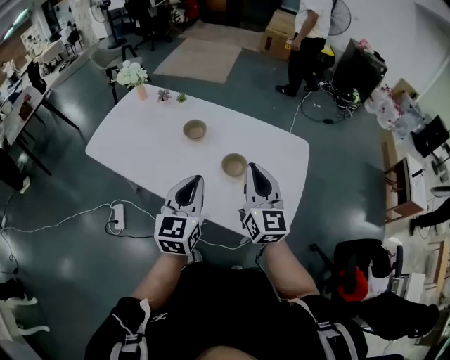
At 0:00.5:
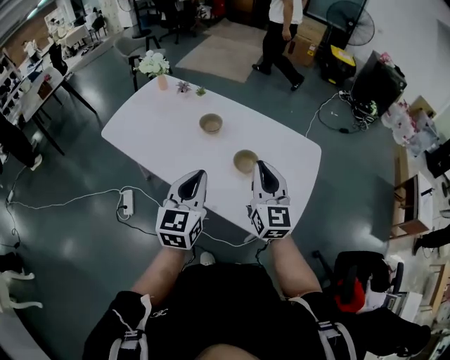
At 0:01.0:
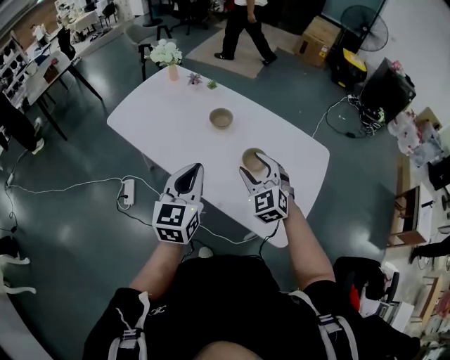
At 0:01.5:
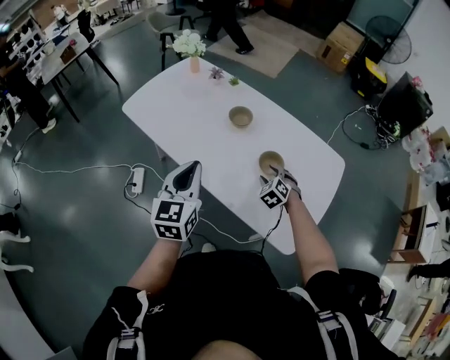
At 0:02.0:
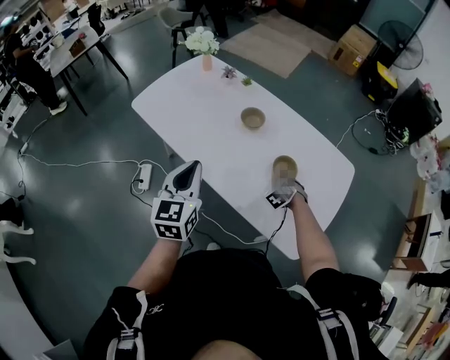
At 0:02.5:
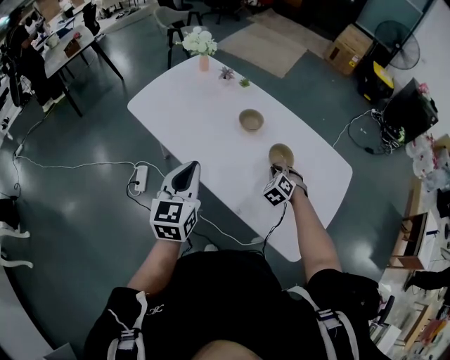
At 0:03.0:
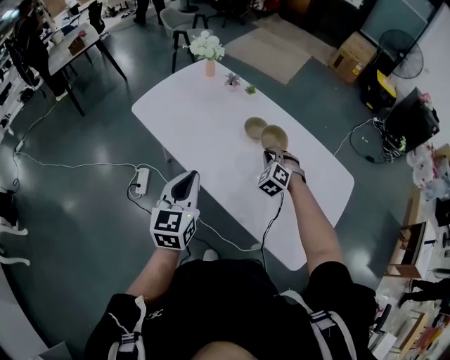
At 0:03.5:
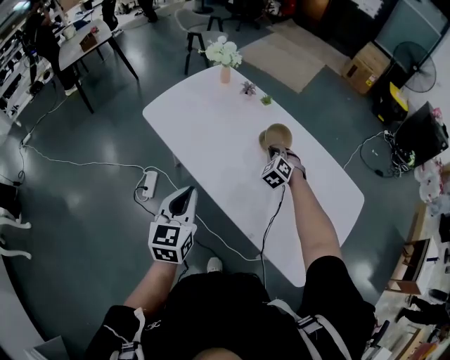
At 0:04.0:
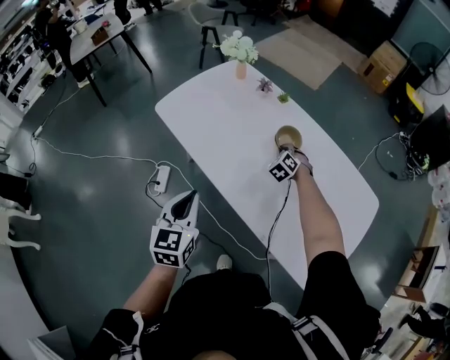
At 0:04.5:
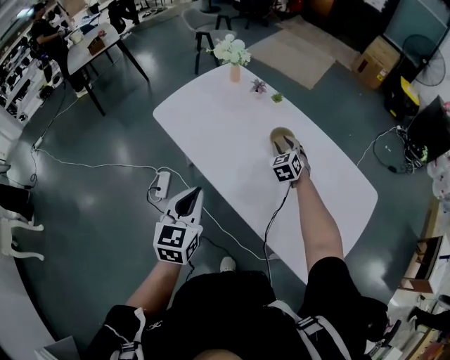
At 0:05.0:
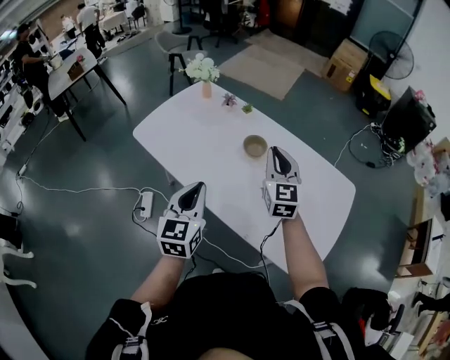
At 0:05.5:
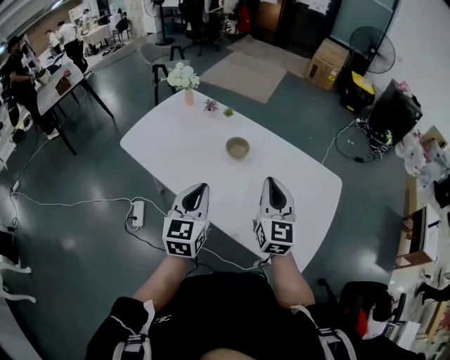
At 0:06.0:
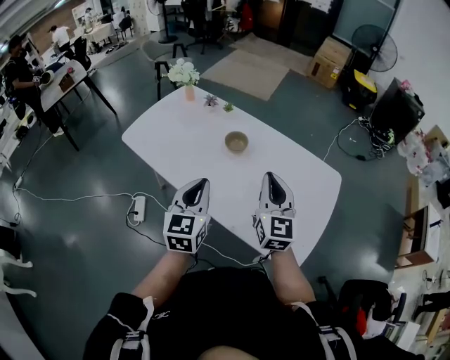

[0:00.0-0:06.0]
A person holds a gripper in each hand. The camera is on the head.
0:00.0 to 0:02.0: The left gripper moves to the left, about 15 cm; the right gripper moves downward, some 35 cm, angles its fingers downward, by approximately 60 degrees, and opens, then closes once more.
0:02.0 to 0:04.0: The right gripper moves forward and to the left, some 30 cm, while the left gripper goes approximately 15 cm to the left and downward.
0:04.0 to 0:06.0: The right gripper shifts approximately 40 cm backward, upward and to the right, tips its fingers upward by some 50 degrees, and opens, then closes once more; the left gripper goes roughly 20 cm to the right and upward.

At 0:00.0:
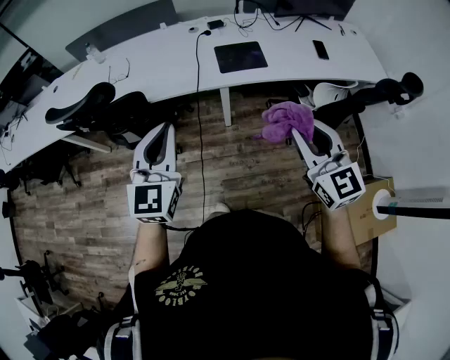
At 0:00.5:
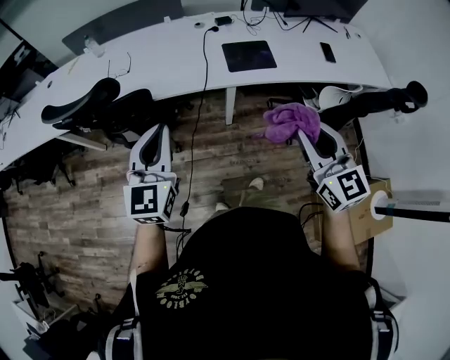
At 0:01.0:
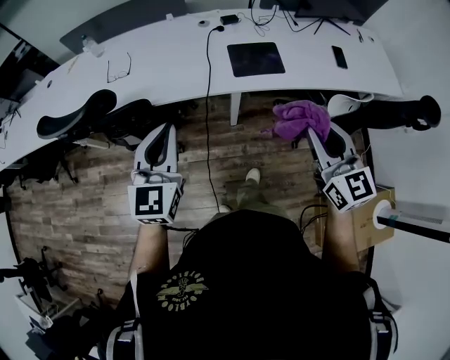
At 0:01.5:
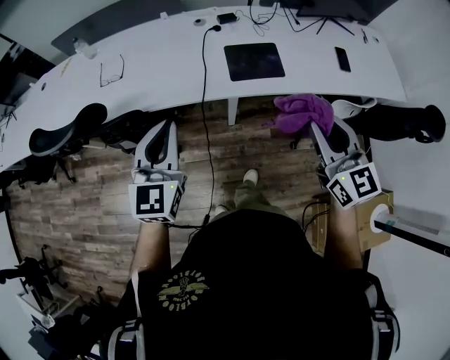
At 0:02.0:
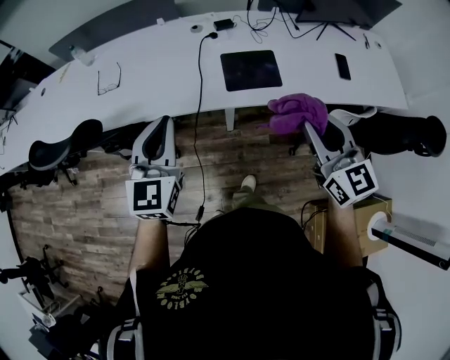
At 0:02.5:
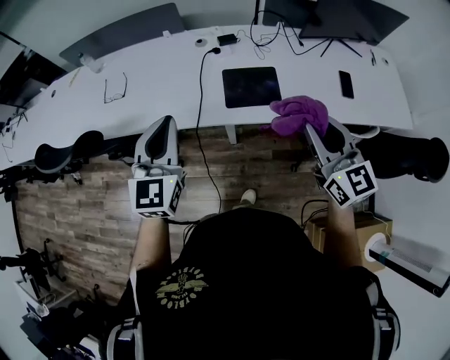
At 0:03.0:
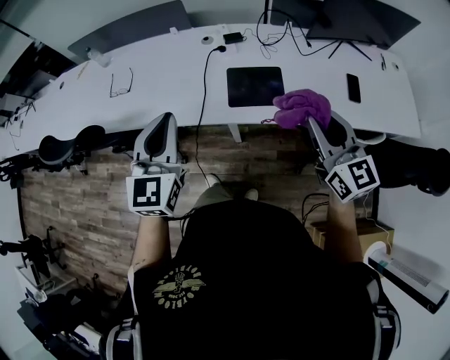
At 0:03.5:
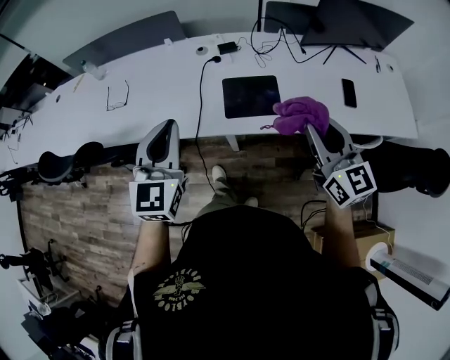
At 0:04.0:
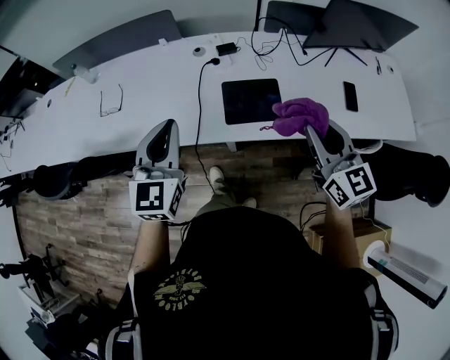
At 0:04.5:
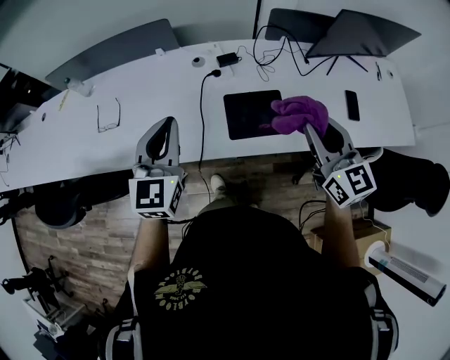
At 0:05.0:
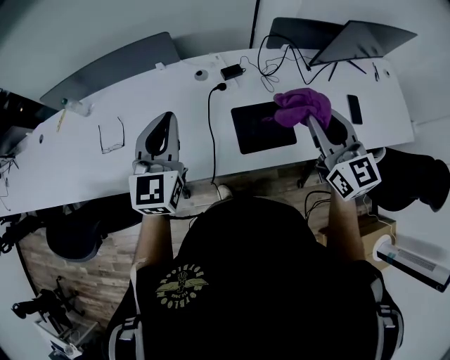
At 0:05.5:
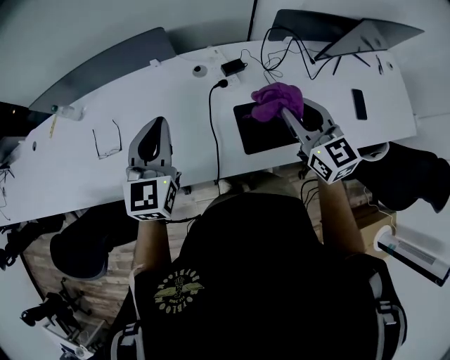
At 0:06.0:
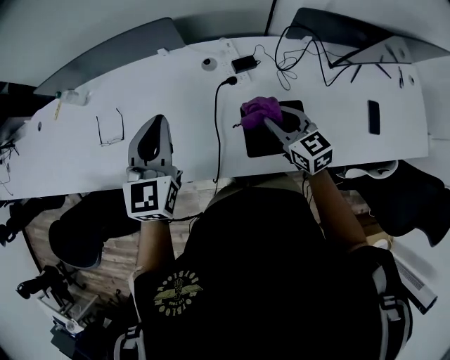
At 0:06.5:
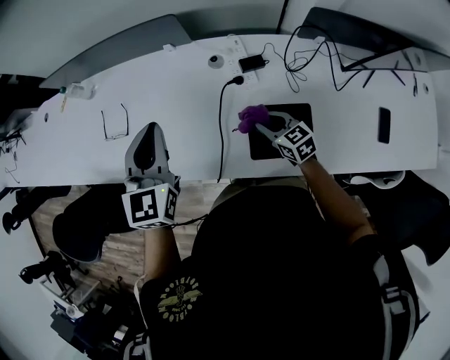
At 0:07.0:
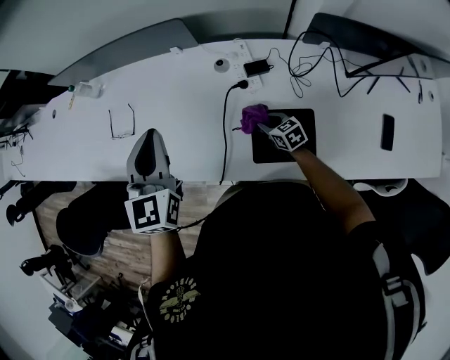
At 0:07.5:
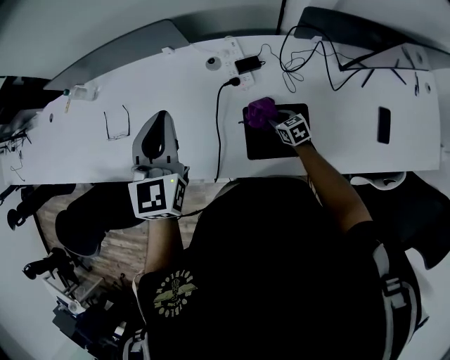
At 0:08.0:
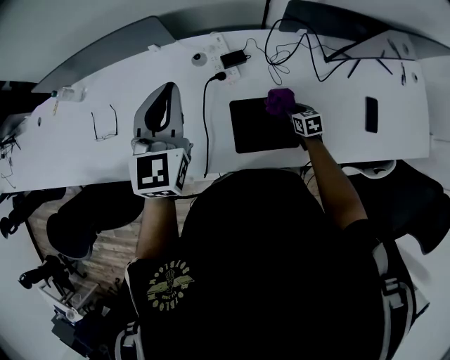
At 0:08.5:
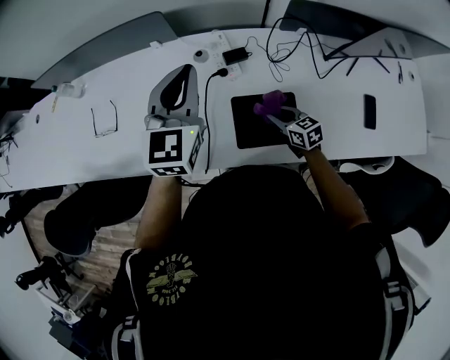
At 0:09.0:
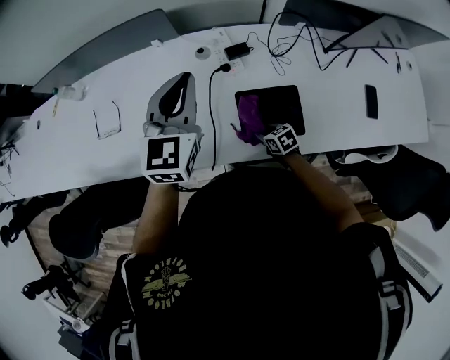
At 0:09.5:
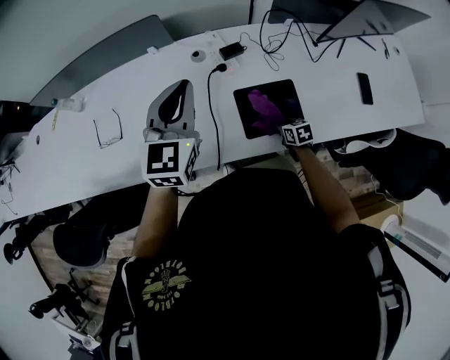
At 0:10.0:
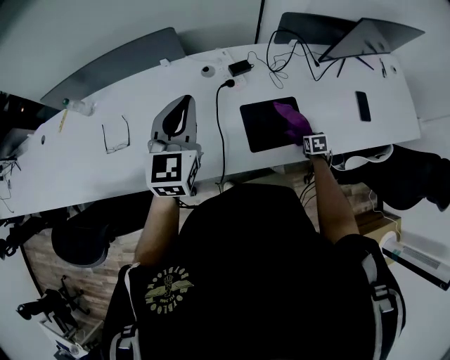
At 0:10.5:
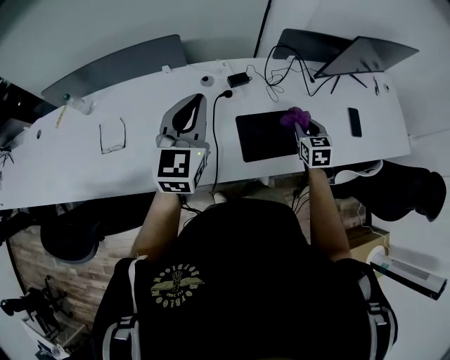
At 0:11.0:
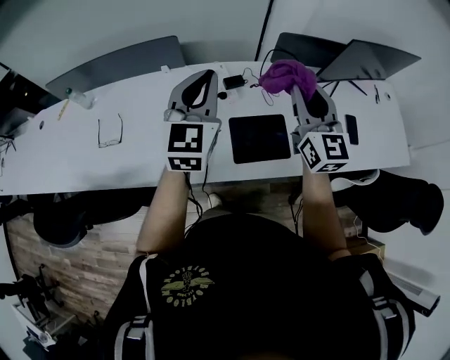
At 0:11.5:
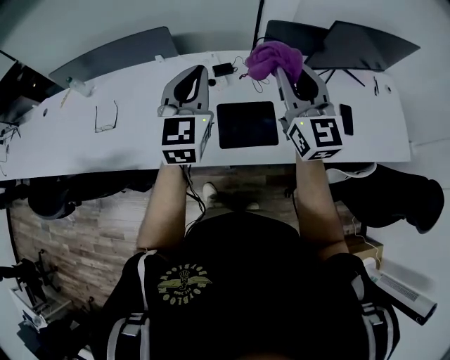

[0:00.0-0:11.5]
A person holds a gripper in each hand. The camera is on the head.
0:00.0 to 0:02.0: The grippers both shift forward by approximately 20 cm.
0:02.0 to 0:04.0: The grippers both shift forward and to the right by some 15 cm.
0:04.0 to 0:06.0: The right gripper is displaced forward, downward and to the left by about 35 cm, and rotates approximately 20 degrees. Meanwhile the left gripper moves forward, about 25 cm.
0:06.0 to 0:07.5: The right gripper goes some 25 cm downward, and changes its angle by about 30 degrees.
0:07.5 to 0:09.5: The left gripper moves approximately 10 cm to the right and comes back. The right gripper swings left and right, roughly 20 cm each way, with 2 reversals, and turns by roughly 20 degrees.
0:09.5 to 0:11.5: The left gripper shifts approximately 15 cm to the right and upward. The right gripper is displaced upward by approximately 50 cm, and tilts its fingers some 60 degrees upward.

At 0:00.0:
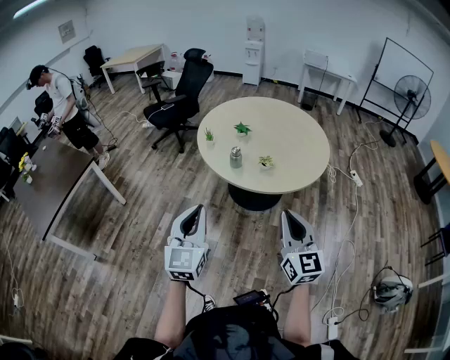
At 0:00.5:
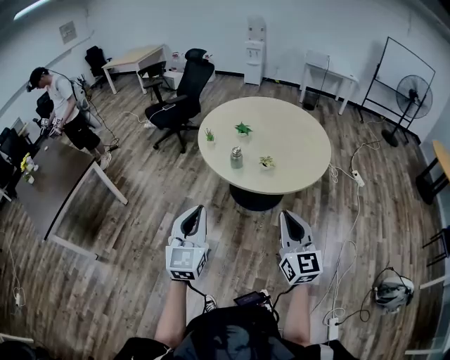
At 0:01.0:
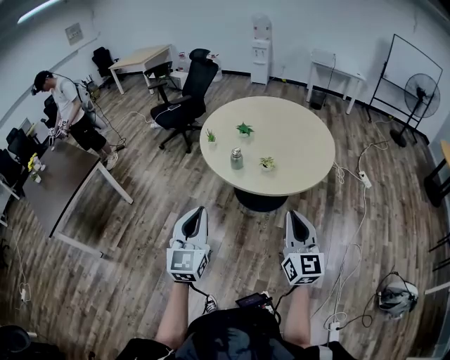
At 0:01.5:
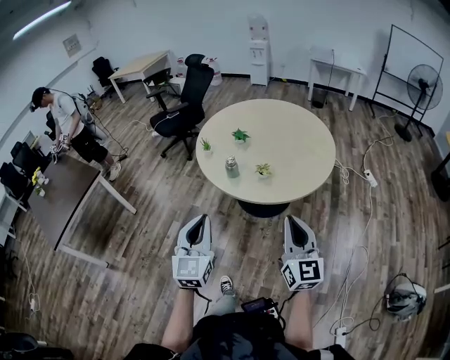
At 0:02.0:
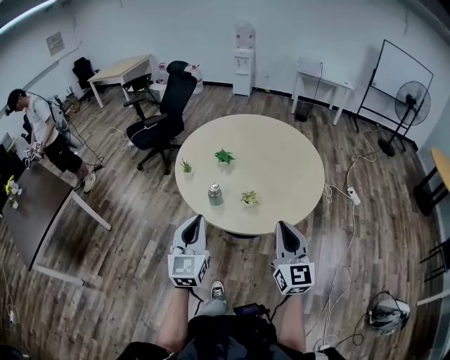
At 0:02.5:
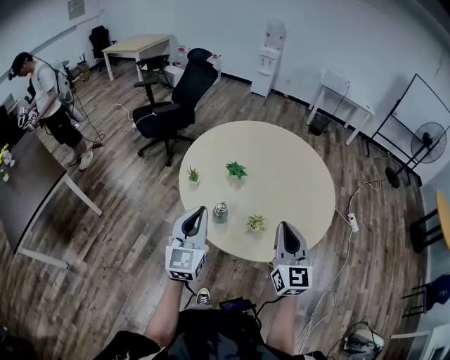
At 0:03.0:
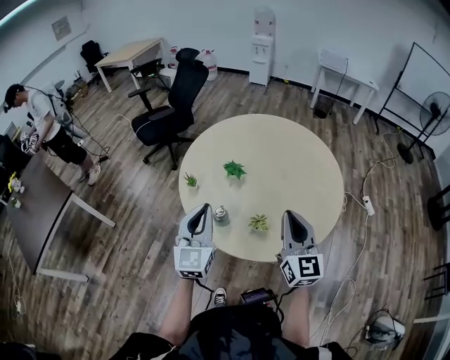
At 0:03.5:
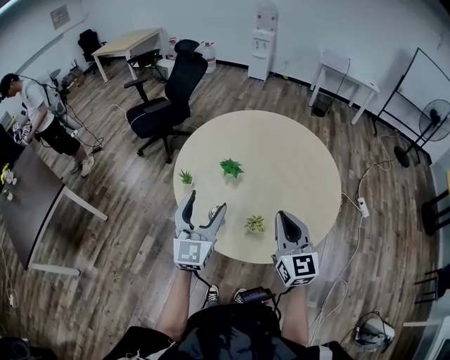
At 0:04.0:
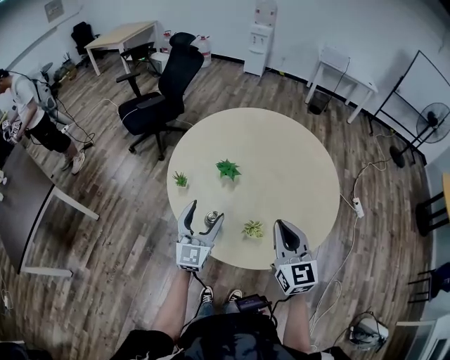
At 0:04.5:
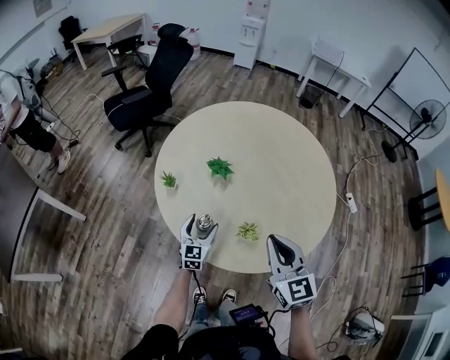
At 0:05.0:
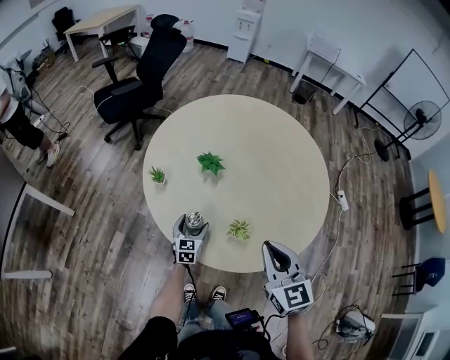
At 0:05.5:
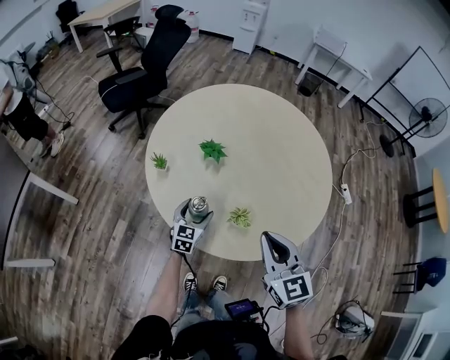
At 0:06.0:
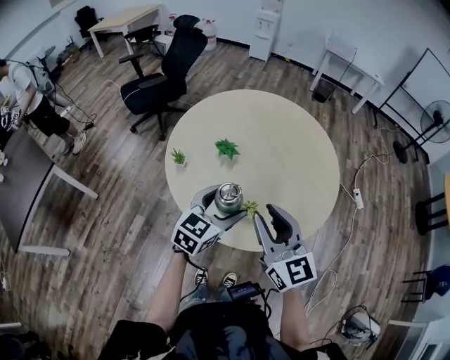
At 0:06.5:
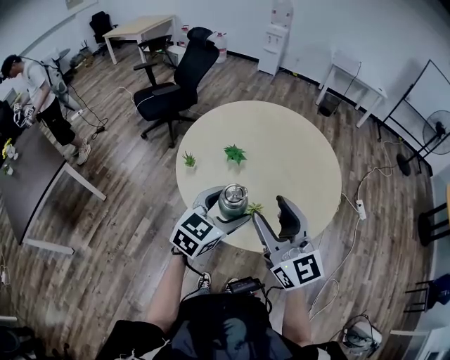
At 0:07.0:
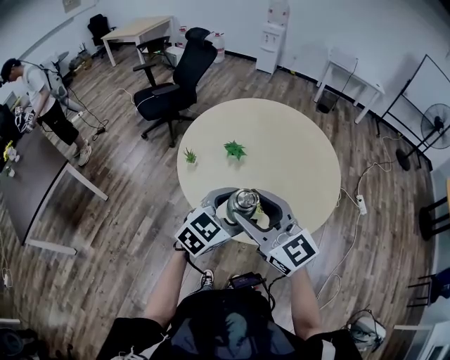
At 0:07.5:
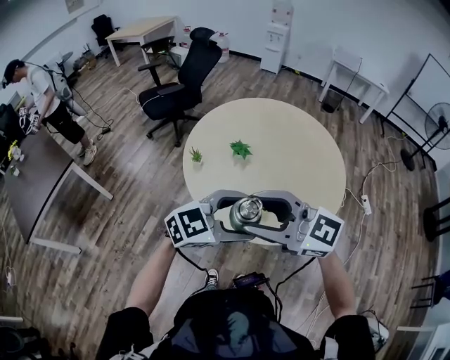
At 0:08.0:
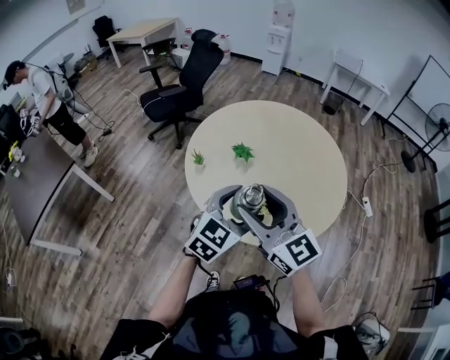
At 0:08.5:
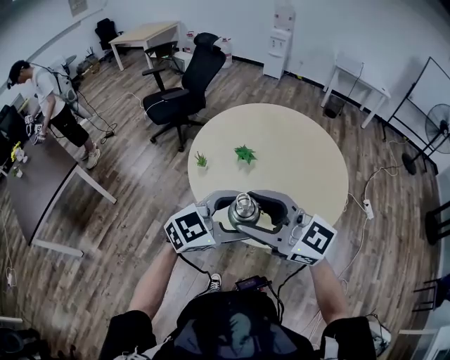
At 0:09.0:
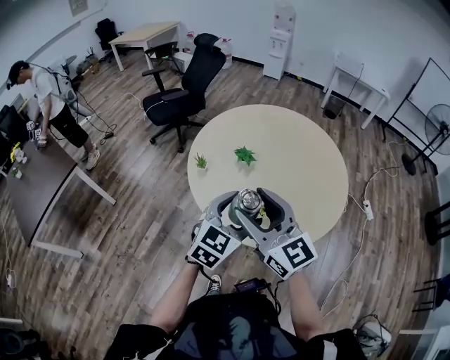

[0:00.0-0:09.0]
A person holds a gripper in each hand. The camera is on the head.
0:00.0 to 0:02.0: The grippers both shift forward and to the right by about 25 cm.
0:02.0 to 0:04.5: The right gripper heads forward, covering some 25 cm, and swivels roughly 20 degrees; the left gripper travels forward and downward by roughly 40 cm, and opens.
0:04.5 to 0:07.0: The left gripper shifts roughly 35 cm upward and backward, and rotates about 30 degrees. The right gripper goes roughly 20 cm upward, to the left and backward, turns by approximately 30 degrees, and opens up.
